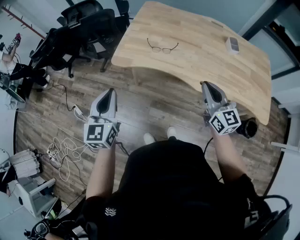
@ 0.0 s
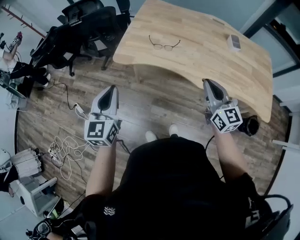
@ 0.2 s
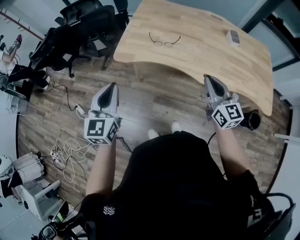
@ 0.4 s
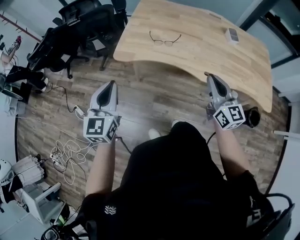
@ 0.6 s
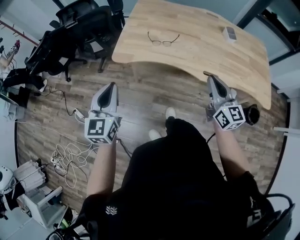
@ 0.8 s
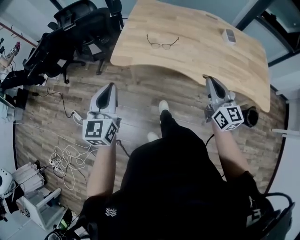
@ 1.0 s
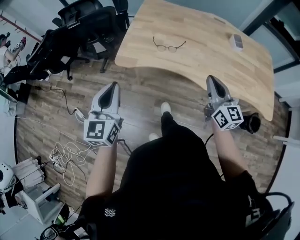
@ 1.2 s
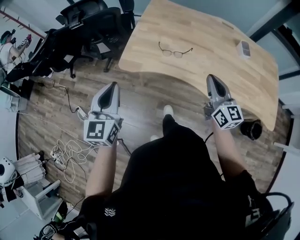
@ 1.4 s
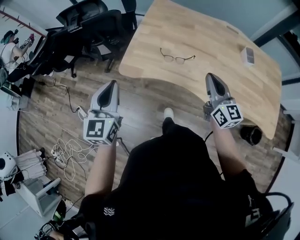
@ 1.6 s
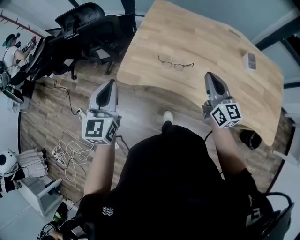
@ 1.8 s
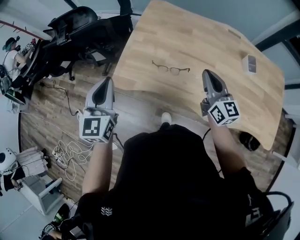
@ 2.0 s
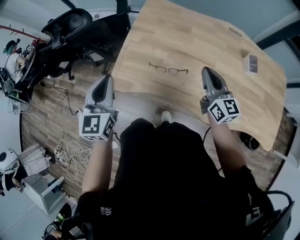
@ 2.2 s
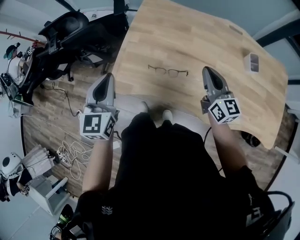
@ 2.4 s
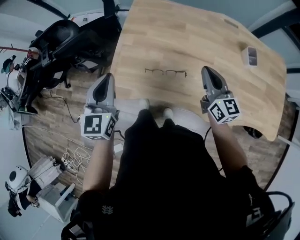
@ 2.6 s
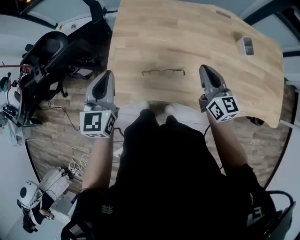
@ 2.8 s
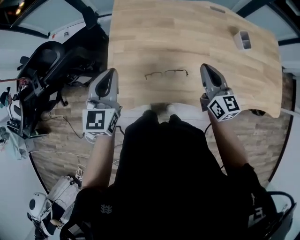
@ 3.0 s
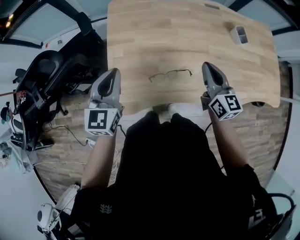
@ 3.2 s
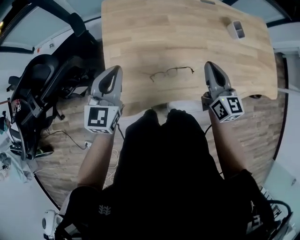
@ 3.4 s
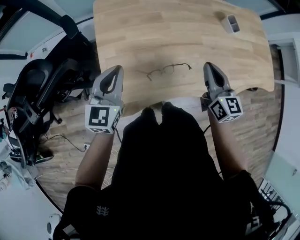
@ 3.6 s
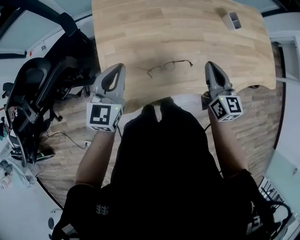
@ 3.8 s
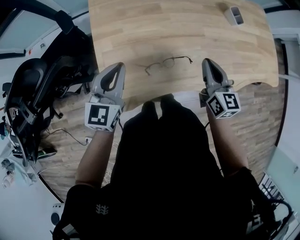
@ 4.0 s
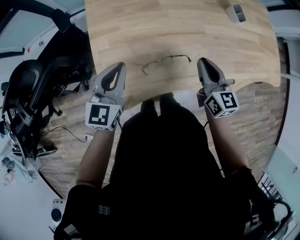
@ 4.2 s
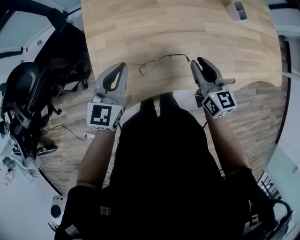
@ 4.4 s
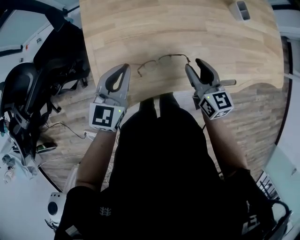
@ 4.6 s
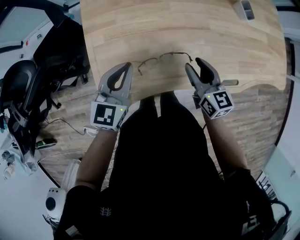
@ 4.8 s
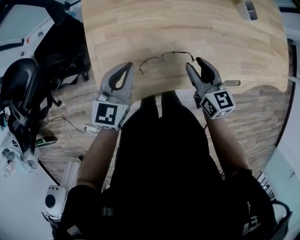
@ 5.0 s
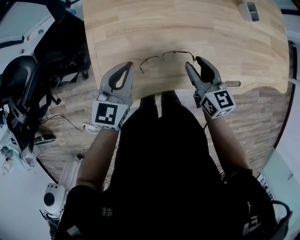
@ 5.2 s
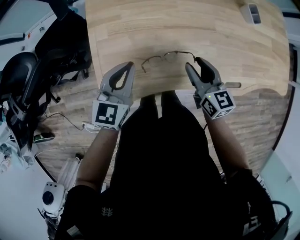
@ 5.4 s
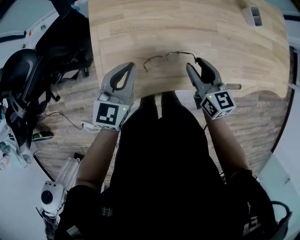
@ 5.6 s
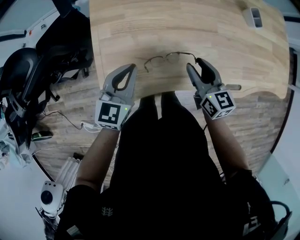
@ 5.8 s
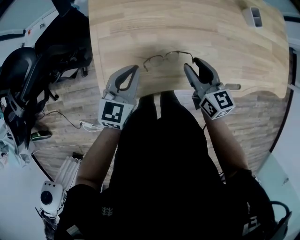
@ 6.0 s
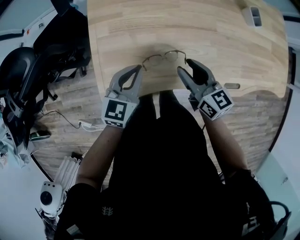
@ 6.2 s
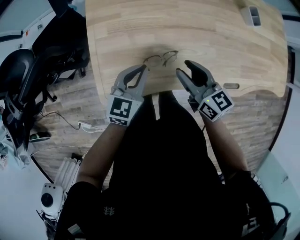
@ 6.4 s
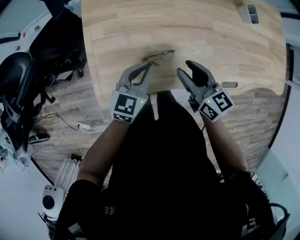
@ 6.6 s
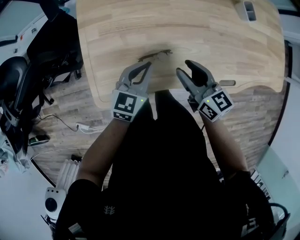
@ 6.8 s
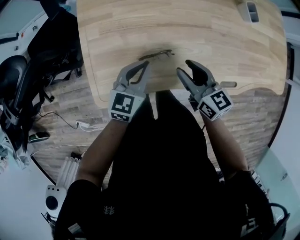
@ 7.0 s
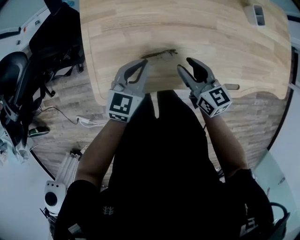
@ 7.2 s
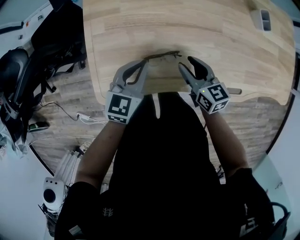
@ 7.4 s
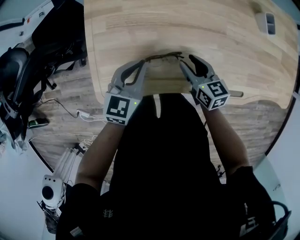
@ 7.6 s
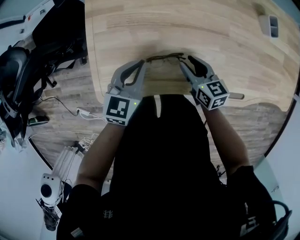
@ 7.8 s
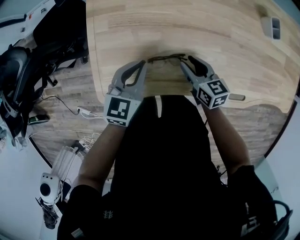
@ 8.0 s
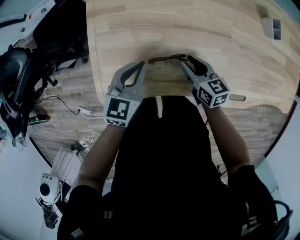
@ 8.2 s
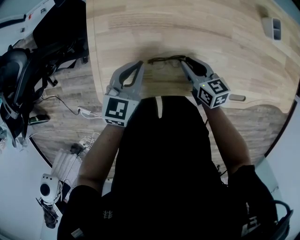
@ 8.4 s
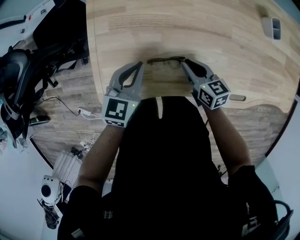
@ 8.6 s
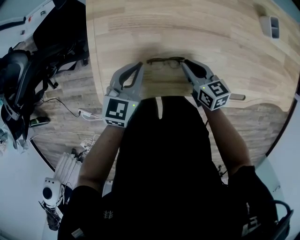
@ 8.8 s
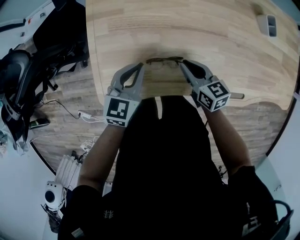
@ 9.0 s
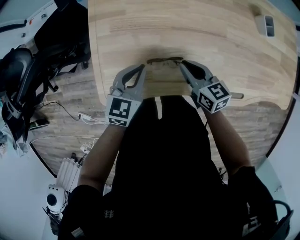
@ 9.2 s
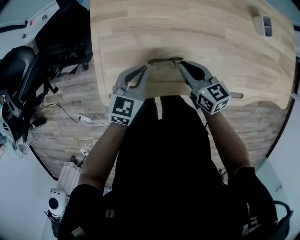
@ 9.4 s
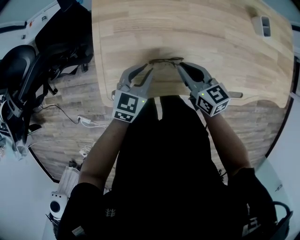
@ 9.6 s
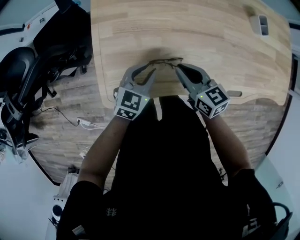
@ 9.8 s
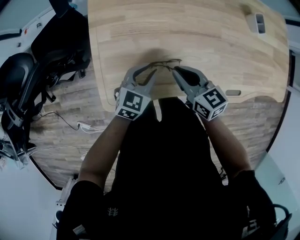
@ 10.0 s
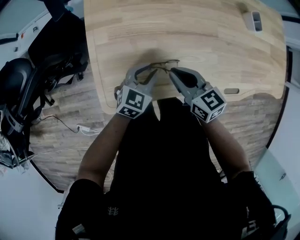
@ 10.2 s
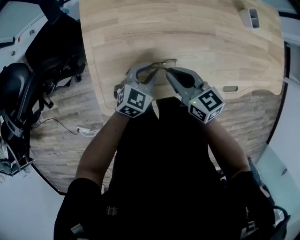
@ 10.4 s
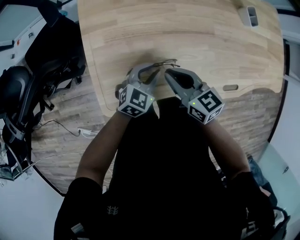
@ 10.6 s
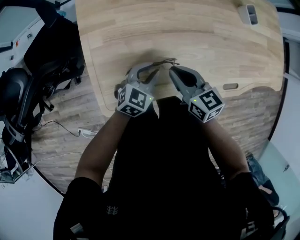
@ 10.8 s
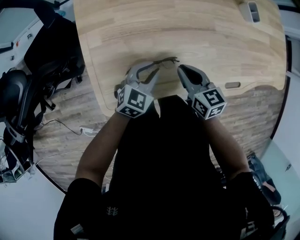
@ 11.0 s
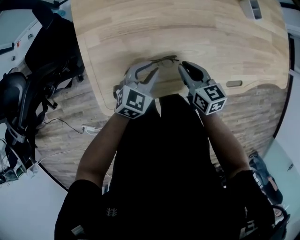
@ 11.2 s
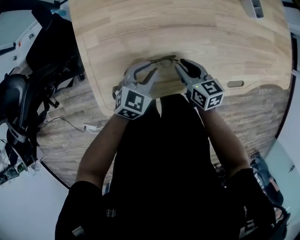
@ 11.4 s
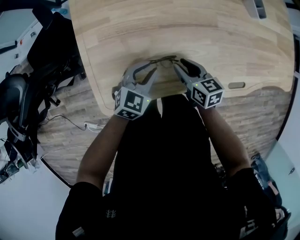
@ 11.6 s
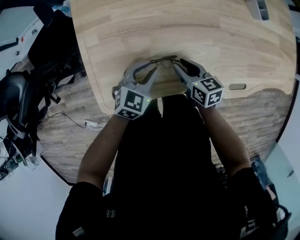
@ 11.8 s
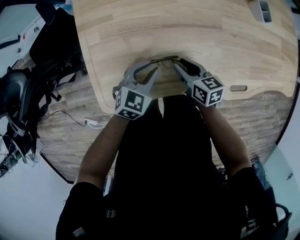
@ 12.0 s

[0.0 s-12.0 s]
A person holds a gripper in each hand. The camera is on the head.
0.0 to 1.6 s: Both grippers move forward, roughly 15 cm.
1.6 to 3.0 s: The left gripper shifts about 30 cm forward, and changes its angle by some 20 degrees, while the right gripper is displaced forward by some 20 cm.
3.0 to 4.4 s: The two grippers go roughly 10 cm downward. The left gripper swivels approximately 20 degrees. Meanwhile the right gripper opens up.
4.4 to 6.0 s: The left gripper is displaced downward by some 5 cm. The right gripper changes place by roughly 5 cm.
6.0 to 7.6 s: The right gripper is displaced downward by about 10 cm, while the left gripper moves about 5 cm.
7.6 to 9.0 s: The right gripper closes.
9.0 to 10.4 s: The right gripper goes approximately 10 cm upward and to the left; the left gripper changes place by some 5 cm, turns by some 20 degrees, and opens.
10.4 to 12.0 s: The right gripper moves downward and to the right, about 15 cm, and opens its fingers.

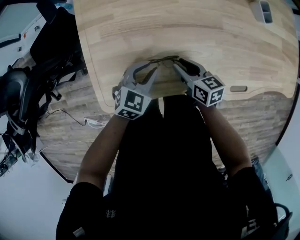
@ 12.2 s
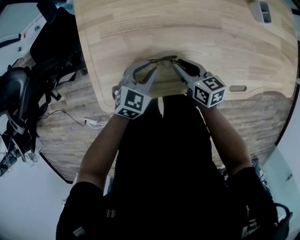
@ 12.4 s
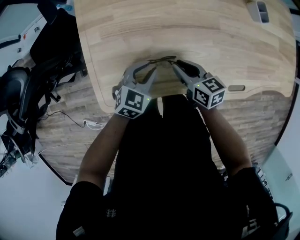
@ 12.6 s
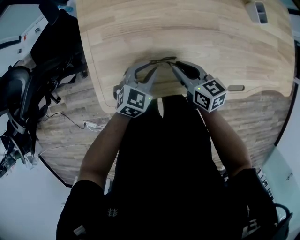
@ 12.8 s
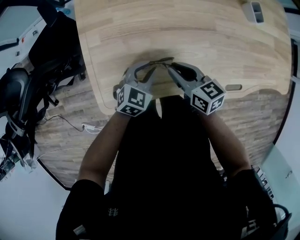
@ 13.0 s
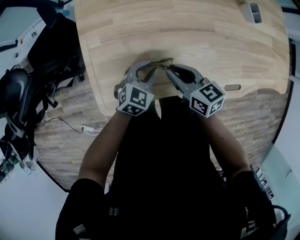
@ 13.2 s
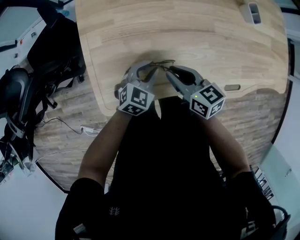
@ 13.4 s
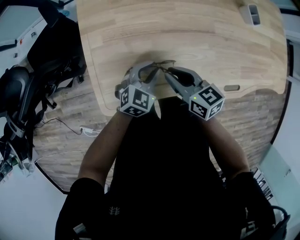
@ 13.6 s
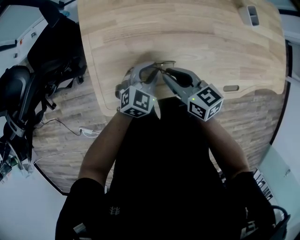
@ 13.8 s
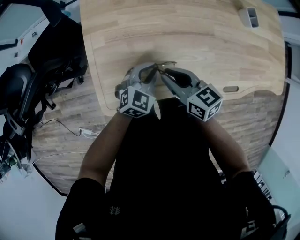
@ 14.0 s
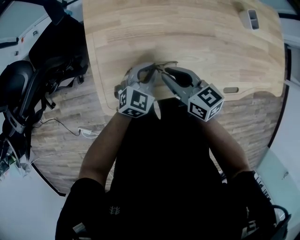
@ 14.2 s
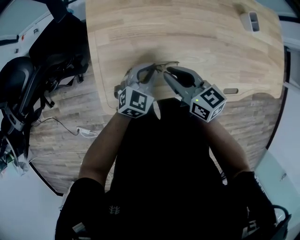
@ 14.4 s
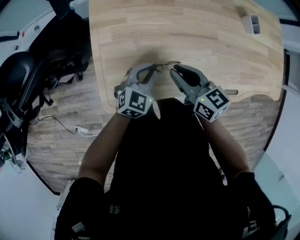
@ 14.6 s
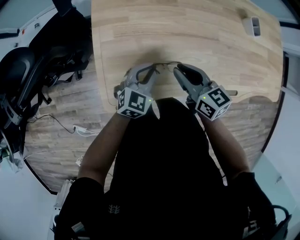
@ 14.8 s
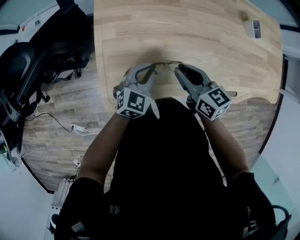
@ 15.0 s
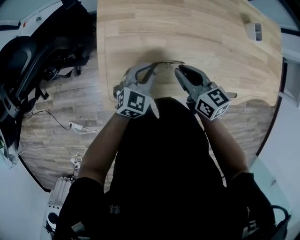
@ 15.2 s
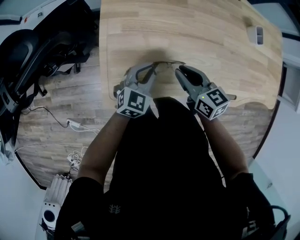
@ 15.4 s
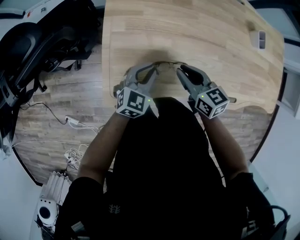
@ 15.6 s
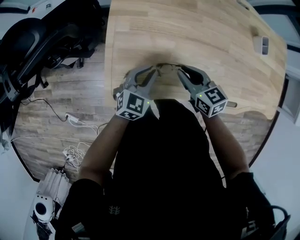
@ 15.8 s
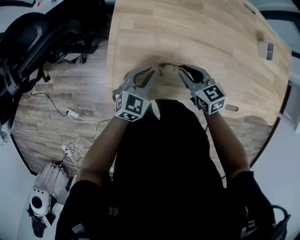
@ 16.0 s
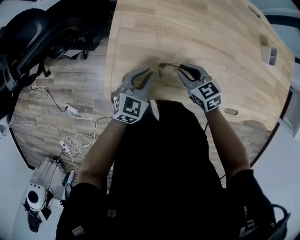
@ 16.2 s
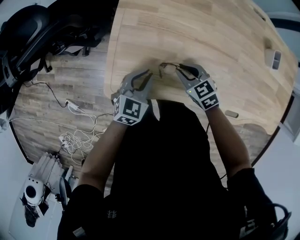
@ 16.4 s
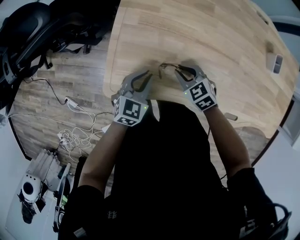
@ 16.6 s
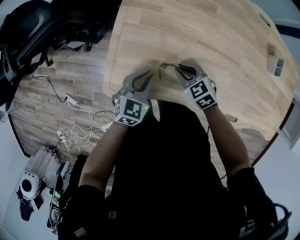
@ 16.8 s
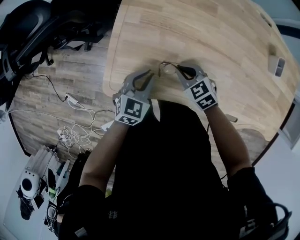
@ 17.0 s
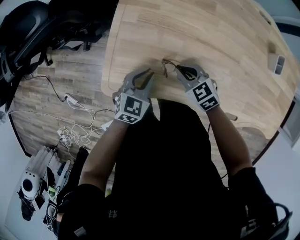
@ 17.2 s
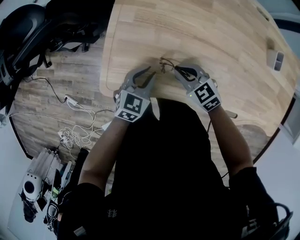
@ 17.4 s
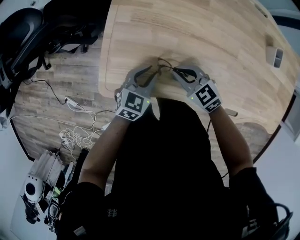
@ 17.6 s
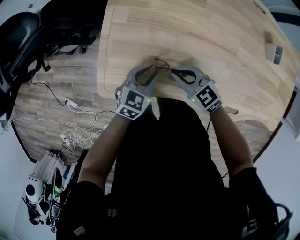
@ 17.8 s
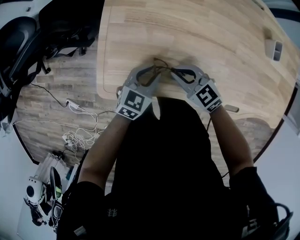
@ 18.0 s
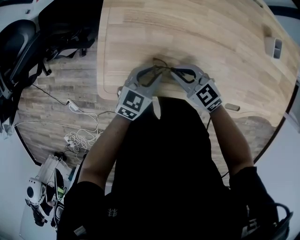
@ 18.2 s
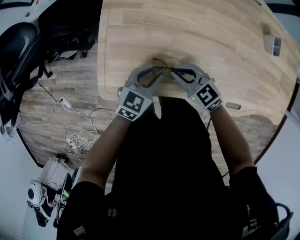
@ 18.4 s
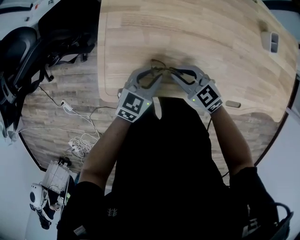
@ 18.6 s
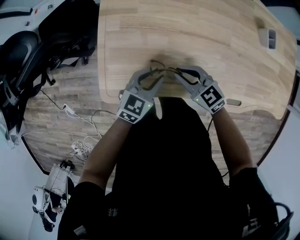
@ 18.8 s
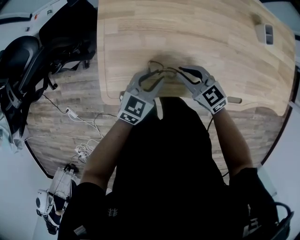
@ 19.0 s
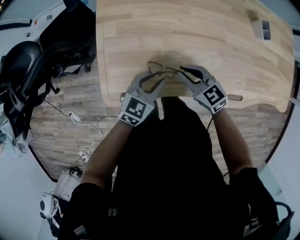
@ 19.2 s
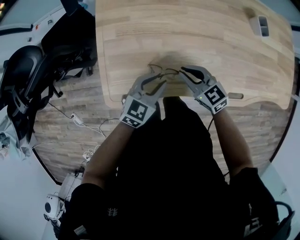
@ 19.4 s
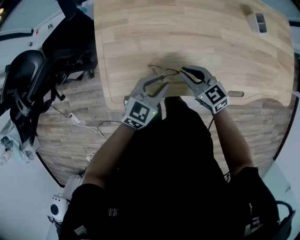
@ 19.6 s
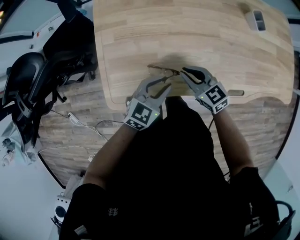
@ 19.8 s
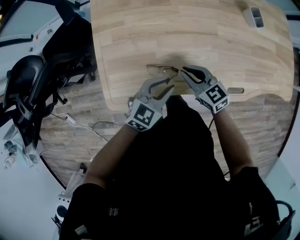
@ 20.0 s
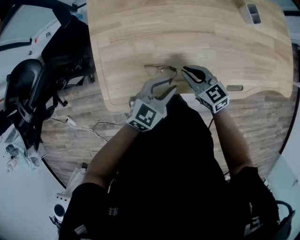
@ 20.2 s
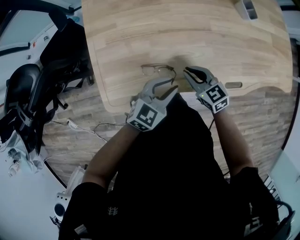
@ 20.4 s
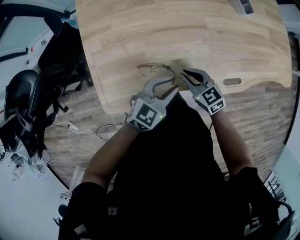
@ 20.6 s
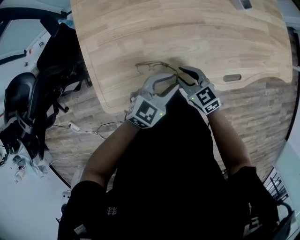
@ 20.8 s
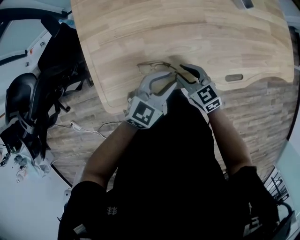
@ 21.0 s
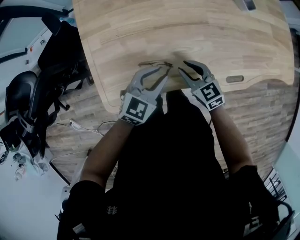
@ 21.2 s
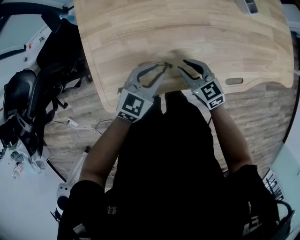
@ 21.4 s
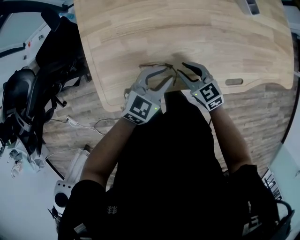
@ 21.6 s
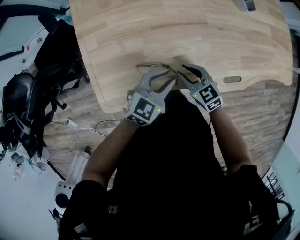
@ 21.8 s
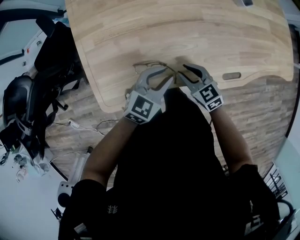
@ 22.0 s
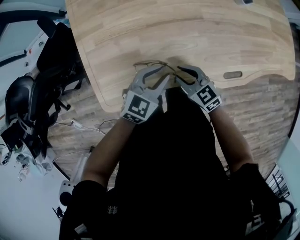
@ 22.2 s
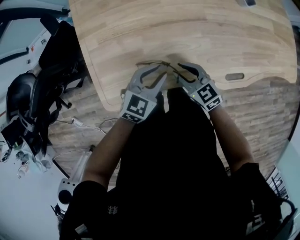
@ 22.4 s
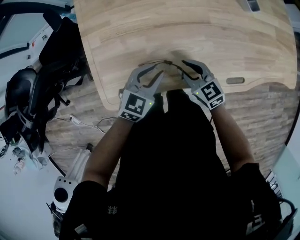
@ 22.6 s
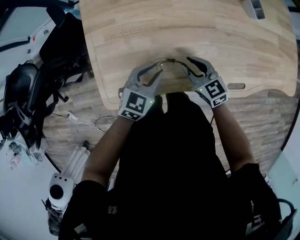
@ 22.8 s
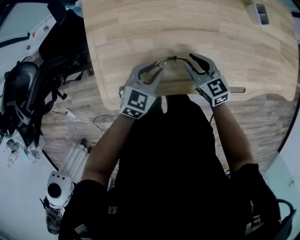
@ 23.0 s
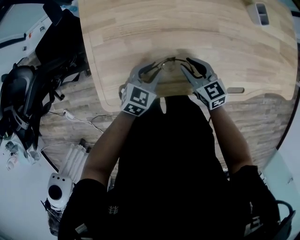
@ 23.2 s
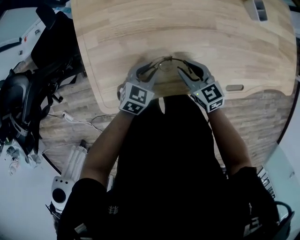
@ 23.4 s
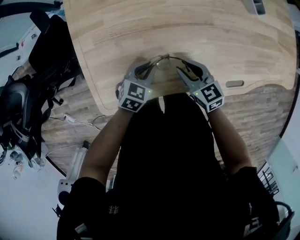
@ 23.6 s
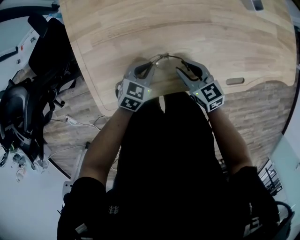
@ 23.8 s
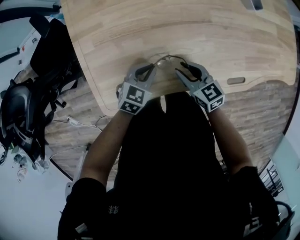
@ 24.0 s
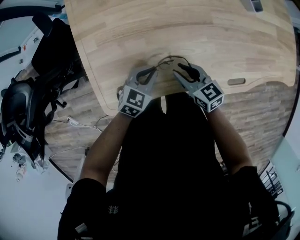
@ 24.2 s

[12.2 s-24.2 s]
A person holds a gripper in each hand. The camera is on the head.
12.2 to 13.8 s: The right gripper is displaced upward and to the left by roughly 10 cm.
13.8 to 15.2 s: The left gripper travels to the left by roughly 5 cm.
15.2 to 16.6 s: The left gripper moves some 5 cm, while the right gripper travels downward by roughly 10 cm, and changes its angle by approximately 50 degrees.
16.6 to 18.2 s: The left gripper goes roughly 5 cm to the right.
18.2 to 19.8 s: The left gripper goes approximately 10 cm upward and to the right. The right gripper travels to the right by approximately 10 cm, and changes its angle by approximately 20 degrees.
19.8 to 21.2 s: The left gripper reaches roughly 10 cm to the right, then returns.
21.2 to 22.6 s: The grippers move only a little.
22.6 to 24.2 s: The left gripper goes roughly 10 cm downward.
